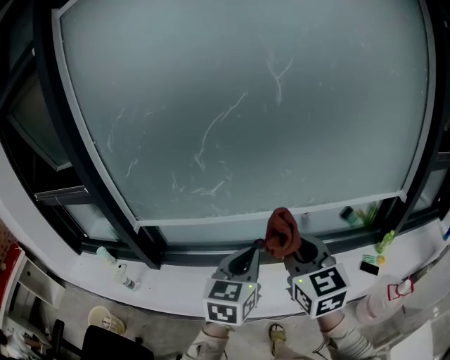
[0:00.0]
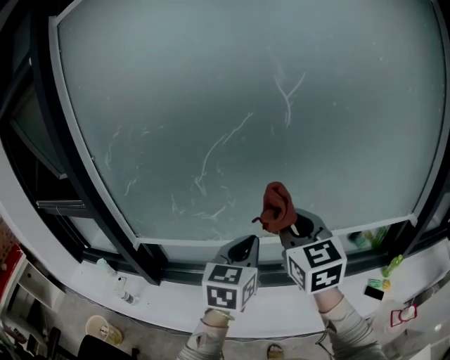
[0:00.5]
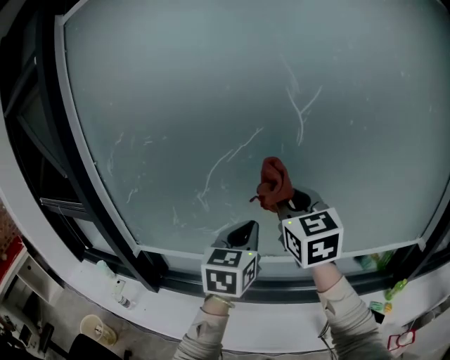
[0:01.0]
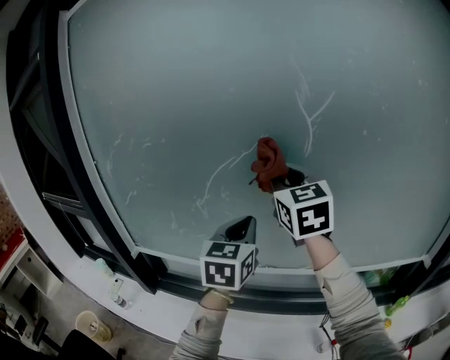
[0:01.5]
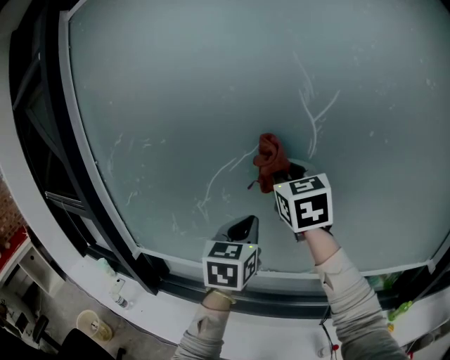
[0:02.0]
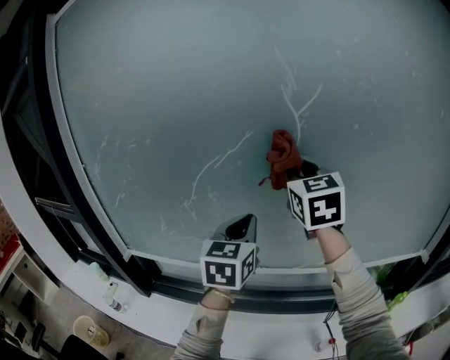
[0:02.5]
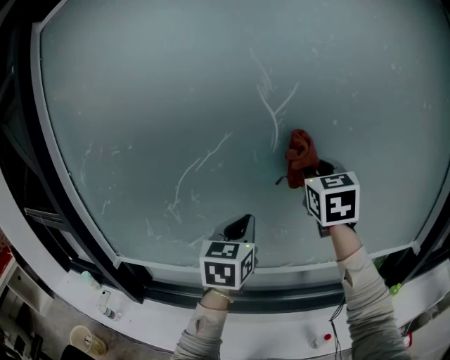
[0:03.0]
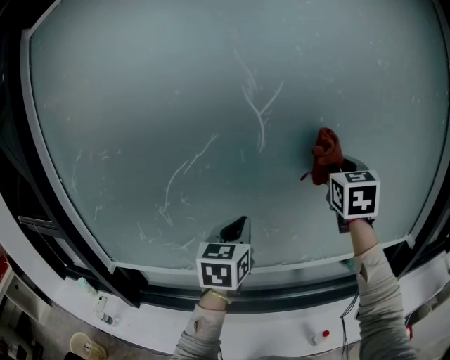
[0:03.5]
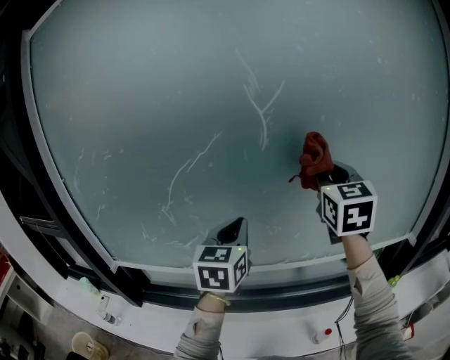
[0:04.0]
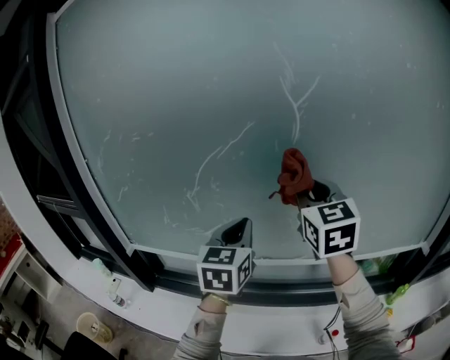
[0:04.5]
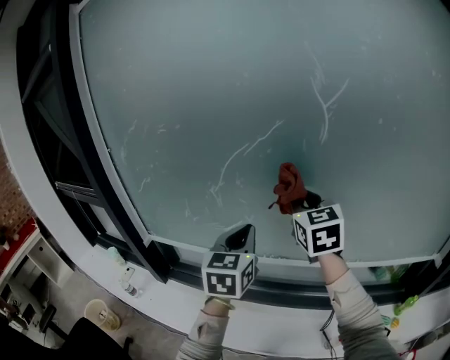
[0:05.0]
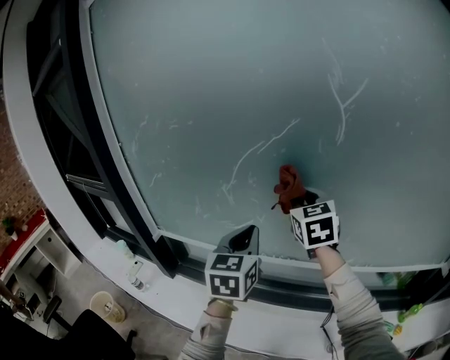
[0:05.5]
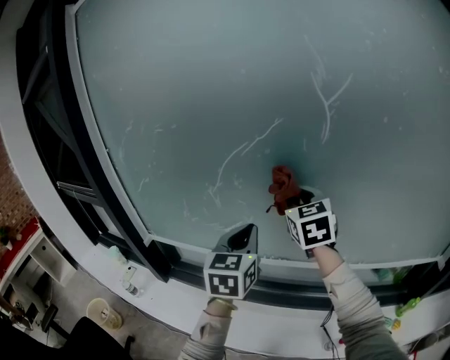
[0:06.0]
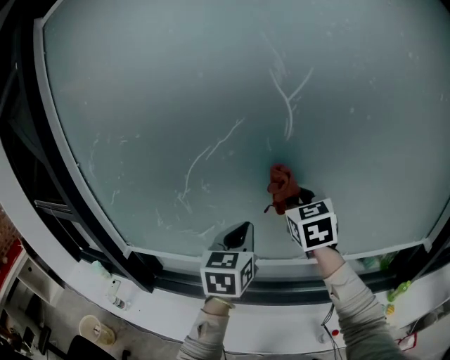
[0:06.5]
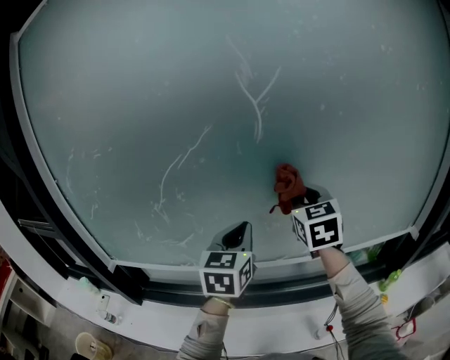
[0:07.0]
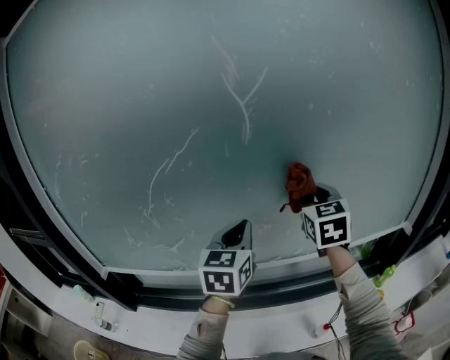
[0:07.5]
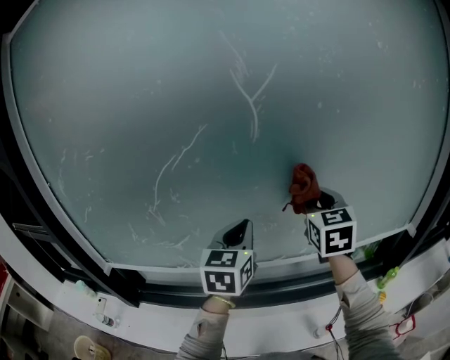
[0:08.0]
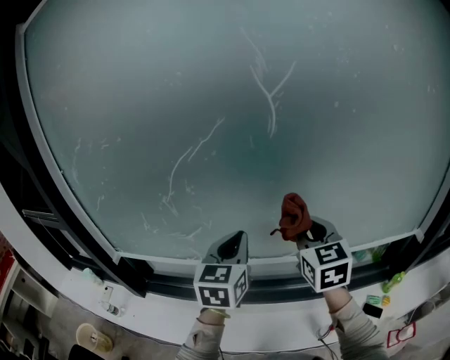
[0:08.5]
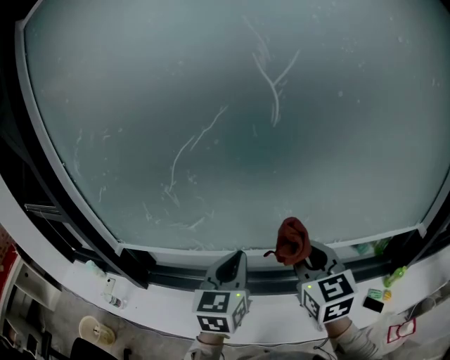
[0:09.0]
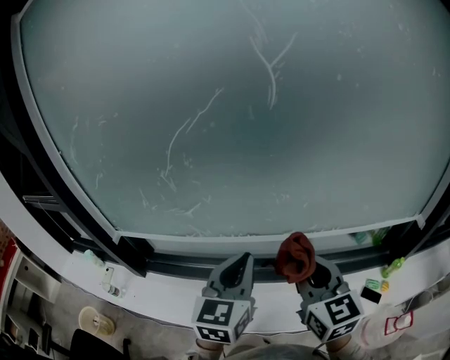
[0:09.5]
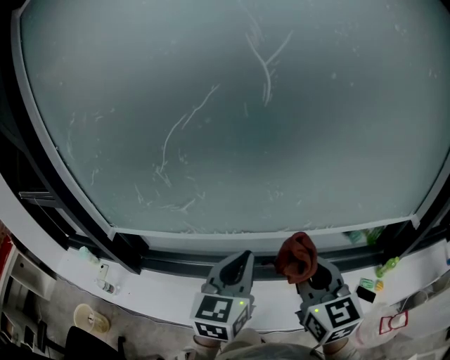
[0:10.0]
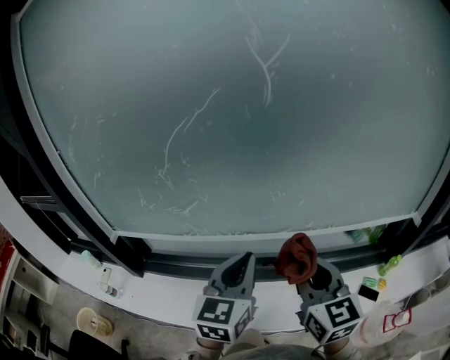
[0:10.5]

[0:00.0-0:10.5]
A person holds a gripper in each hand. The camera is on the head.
0:00.0 to 0:02.0: The right gripper moves forward and upward, roughly 40 cm. Meanwhile the left gripper shifts roughly 30 cm forward.
0:02.0 to 0:04.0: The right gripper is displaced to the right by approximately 20 cm. Meanwhile the left gripper goes some 5 cm to the right.
0:04.0 to 0:06.5: The right gripper travels to the left, downward and forward by roughly 15 cm, while the left gripper travels to the left and back again, some 10 cm each way.
0:06.5 to 0:08.5: The right gripper is displaced backward, to the right and downward by approximately 10 cm.
0:08.5 to 0:10.5: The two grippers go some 15 cm backward.

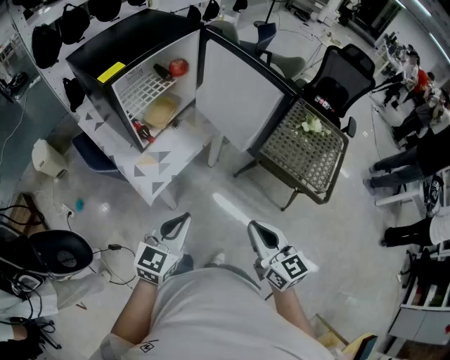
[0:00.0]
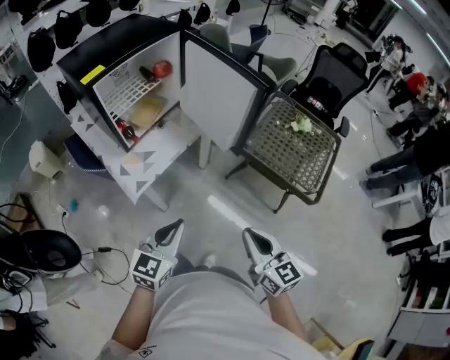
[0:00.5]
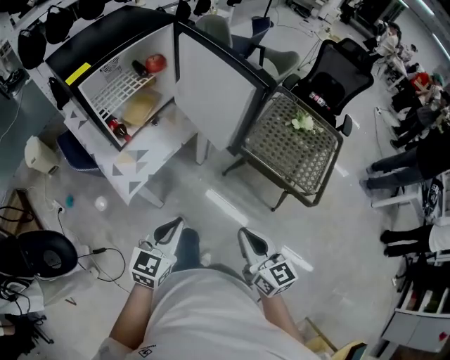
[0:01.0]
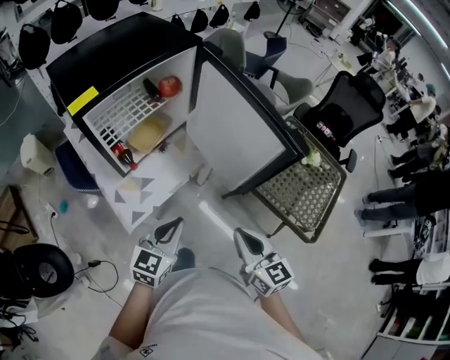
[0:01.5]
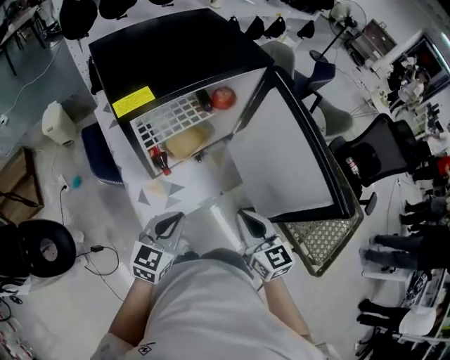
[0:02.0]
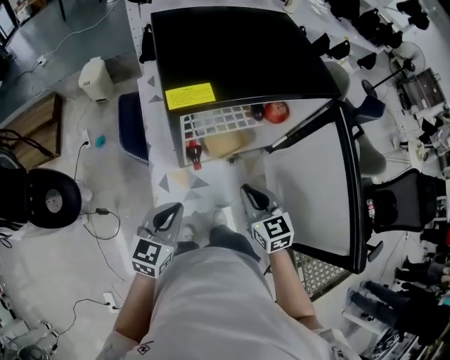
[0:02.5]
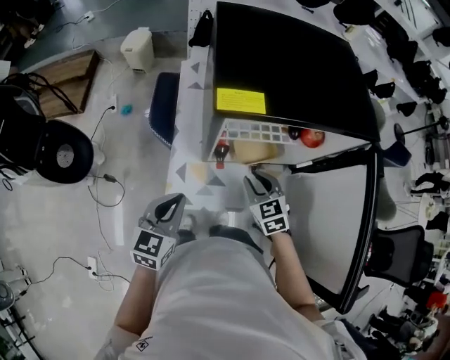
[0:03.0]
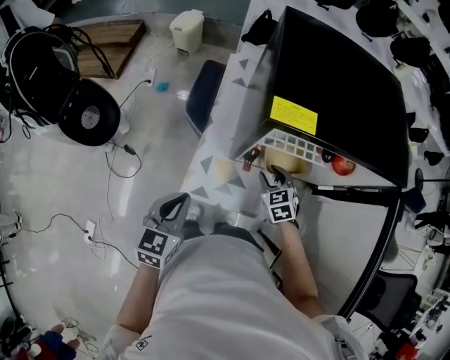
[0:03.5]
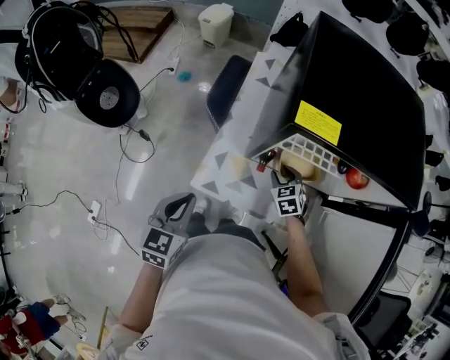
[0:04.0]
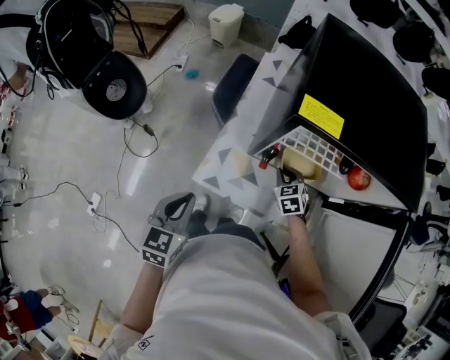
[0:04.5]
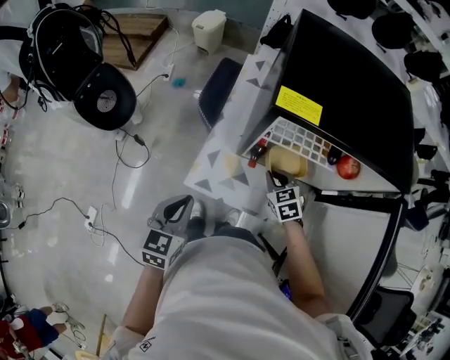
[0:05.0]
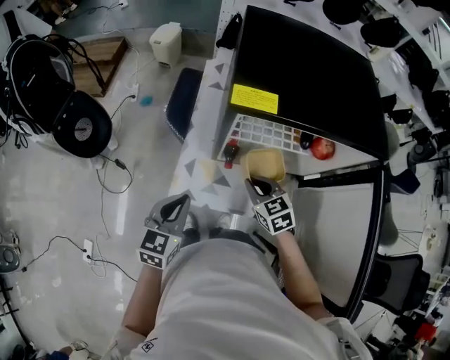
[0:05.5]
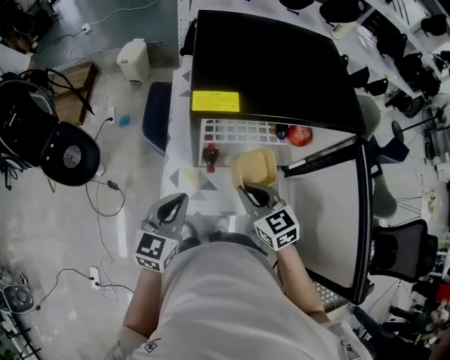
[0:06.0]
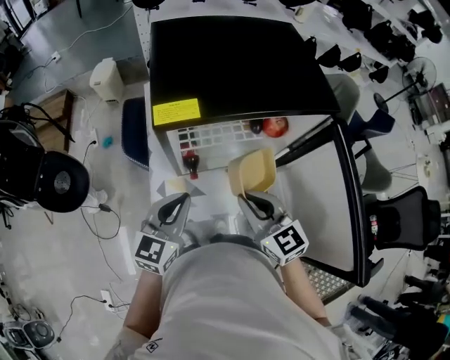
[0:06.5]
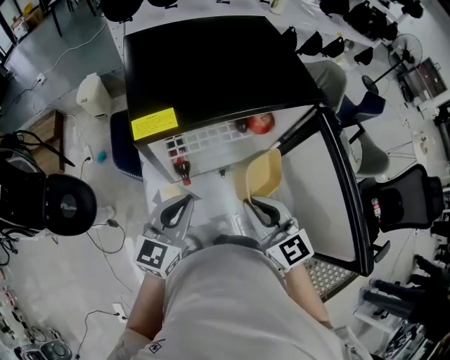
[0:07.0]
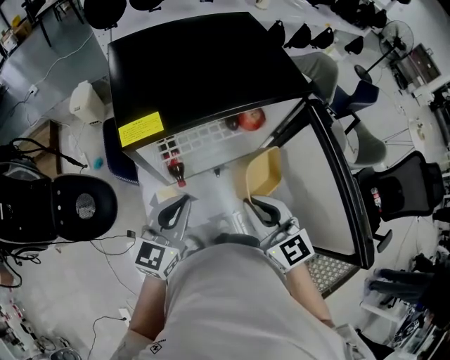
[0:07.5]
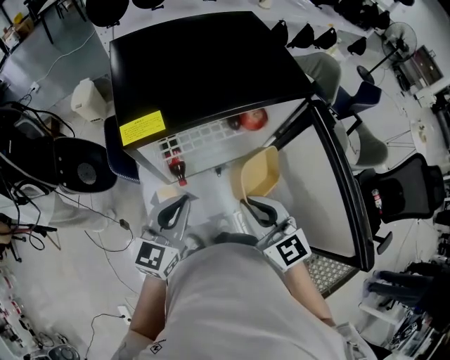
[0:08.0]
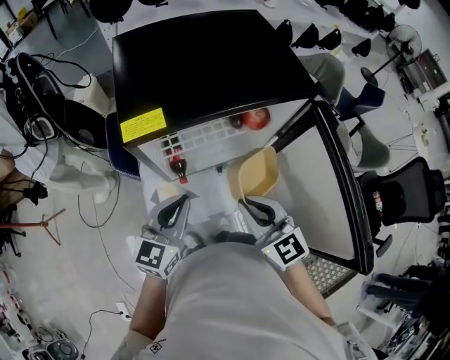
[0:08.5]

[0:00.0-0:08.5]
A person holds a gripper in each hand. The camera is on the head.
0:00.0 to 0:02.0: The grippers both shift forward by roughly 25 cm. The right gripper rotates about 20 degrees, while the left gripper turns by some 20 degrees.
0:02.0 to 0:04.0: The right gripper shifts by approximately 35 cm, tilts its fingers about 40 degrees downward, and opens up; the left gripper shifts by about 15 cm, and changes its angle by roughly 60 degrees.
0:04.0 to 0:06.5: The left gripper moves to the right and upward, some 15 cm, and changes its angle by some 30 degrees; the right gripper moves upward and backward, about 30 cm, tips its fingers upward by approximately 30 degrees, and closes its fingers.
0:06.5 to 0:08.5: There are only small adjustments of the grippers.

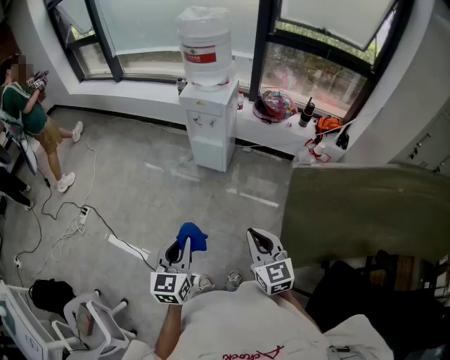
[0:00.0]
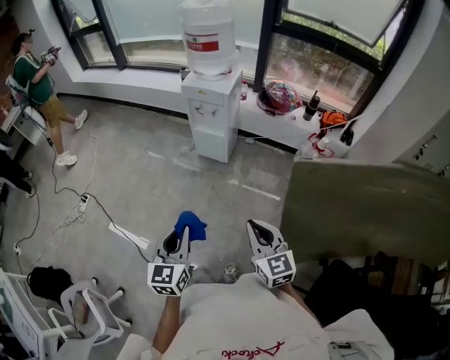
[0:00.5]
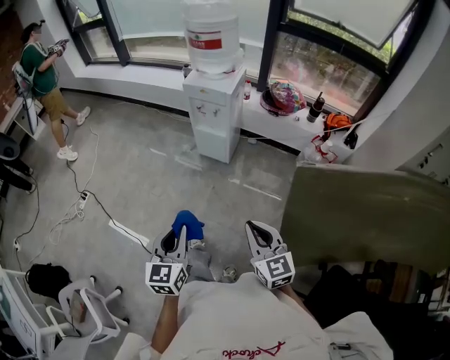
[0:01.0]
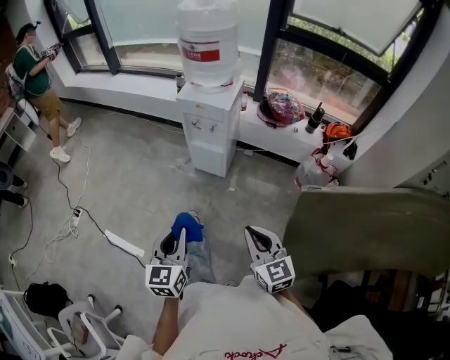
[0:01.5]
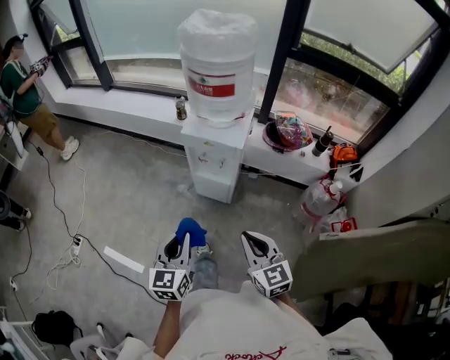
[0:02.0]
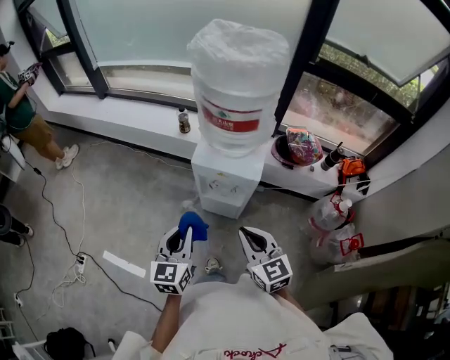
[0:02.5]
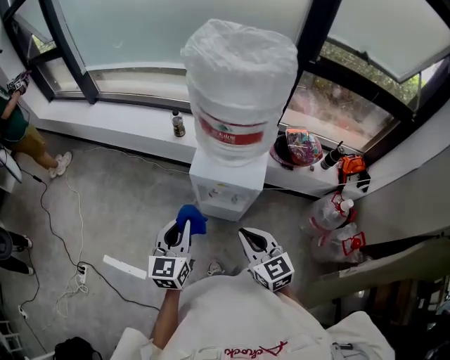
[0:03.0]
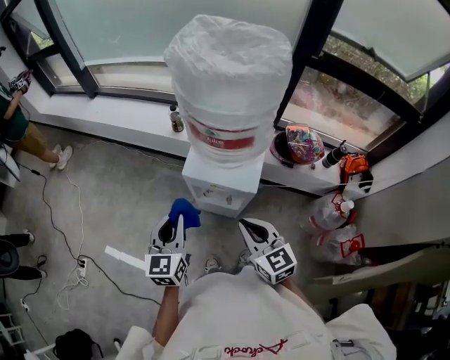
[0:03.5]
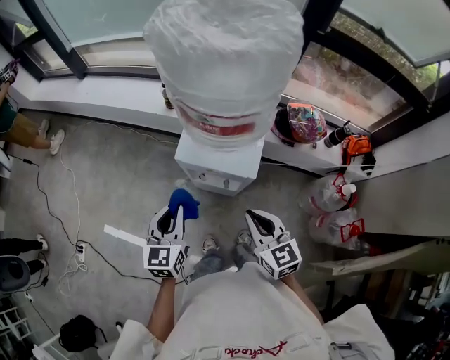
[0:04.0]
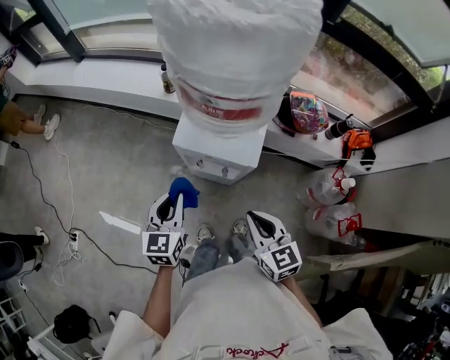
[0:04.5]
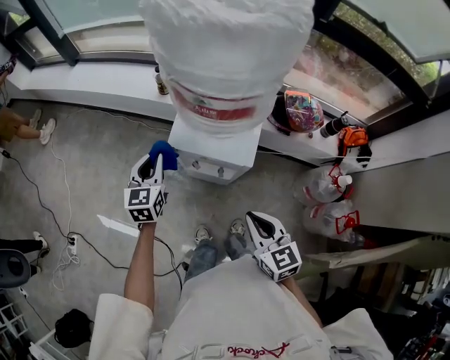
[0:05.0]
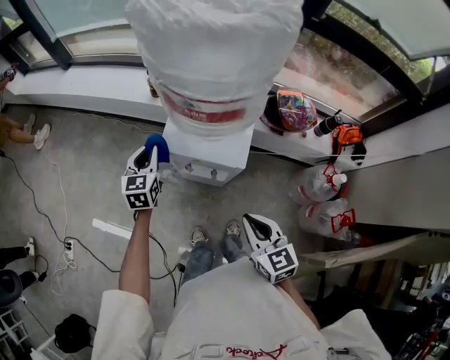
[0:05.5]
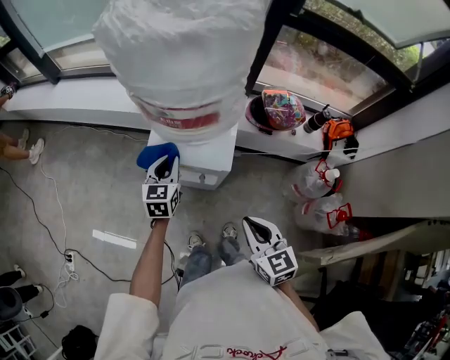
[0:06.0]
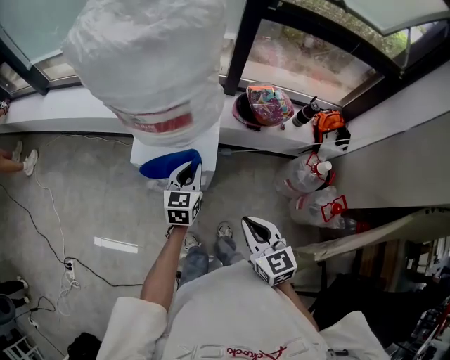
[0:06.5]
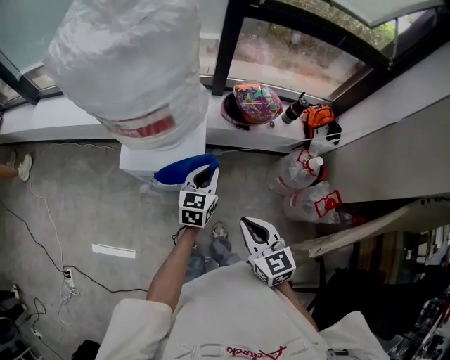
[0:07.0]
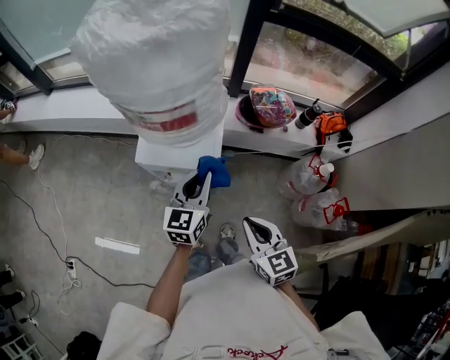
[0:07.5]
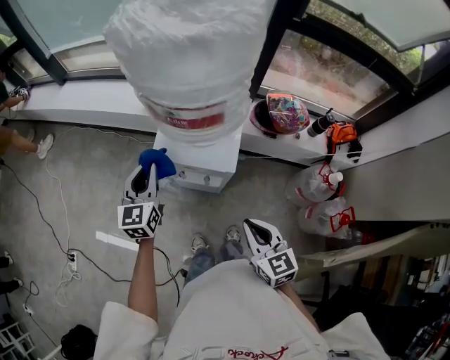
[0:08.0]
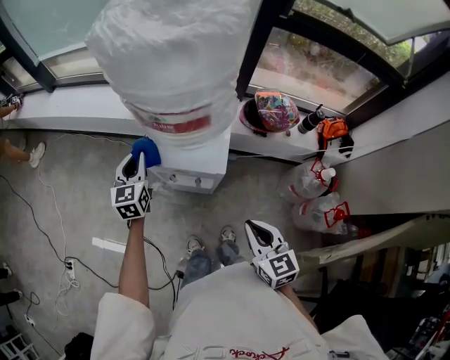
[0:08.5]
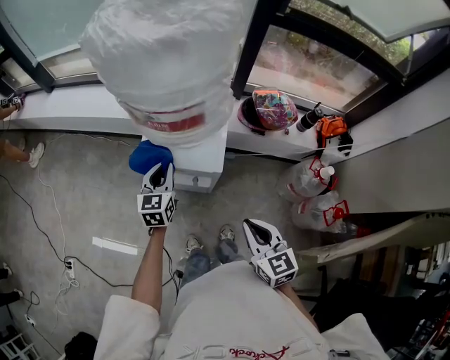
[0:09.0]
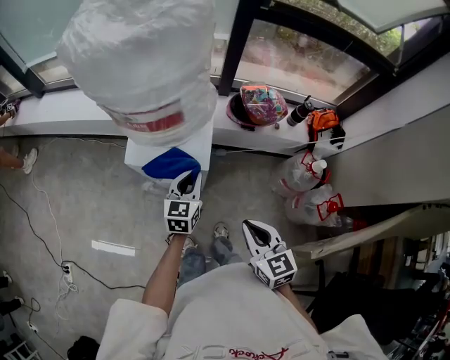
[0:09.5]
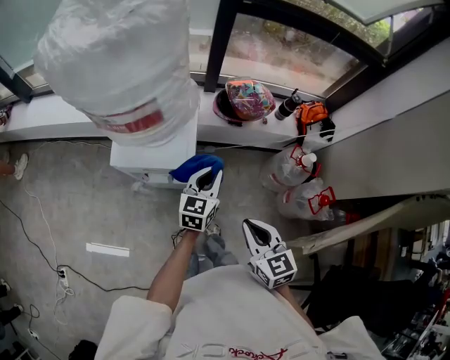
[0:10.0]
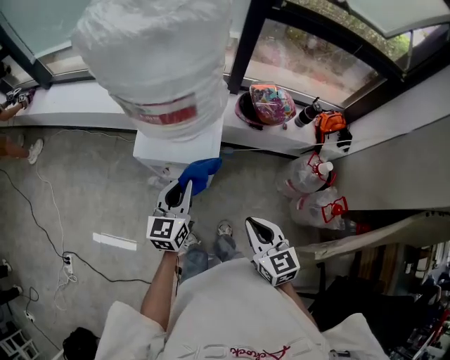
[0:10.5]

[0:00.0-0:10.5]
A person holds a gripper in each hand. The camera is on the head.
0:00.0 to 0:02.0: The two grippers go some 35 cm forward.
0:02.0 to 0:04.0: Both grippers travel together forward, approximately 30 cm.
0:04.0 to 0:06.5: The right gripper travels to the right and backward by roughly 10 cm; the left gripper shifts roughly 25 cm to the right, forward and downward.
0:06.5 to 0:08.5: The left gripper moves to the left, some 20 cm.
0:08.5 to 0:10.5: The left gripper heads to the right and backward, covering about 20 cm, and changes its angle by about 20 degrees.
